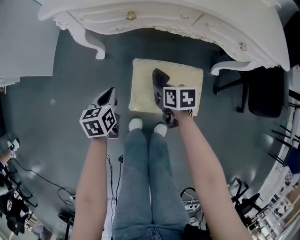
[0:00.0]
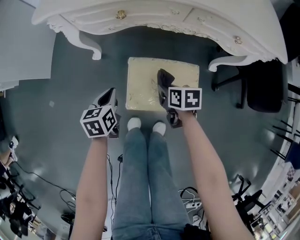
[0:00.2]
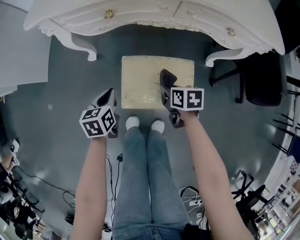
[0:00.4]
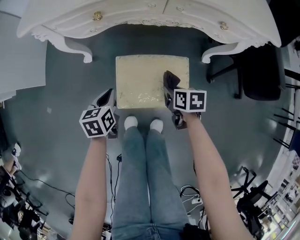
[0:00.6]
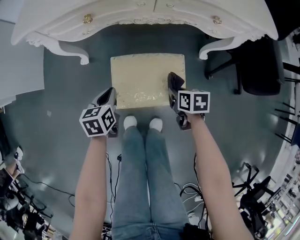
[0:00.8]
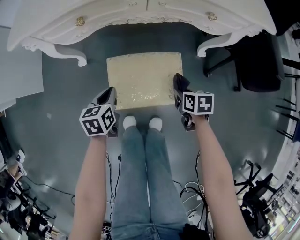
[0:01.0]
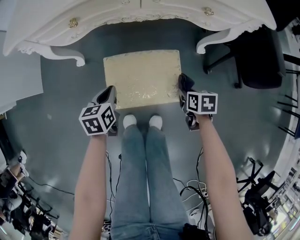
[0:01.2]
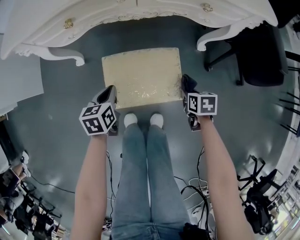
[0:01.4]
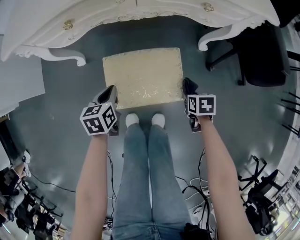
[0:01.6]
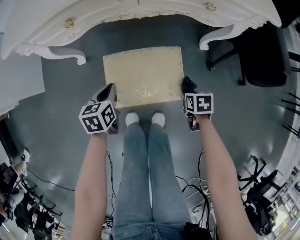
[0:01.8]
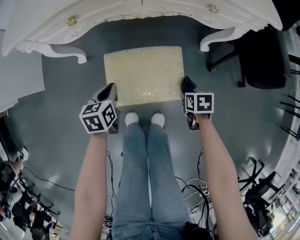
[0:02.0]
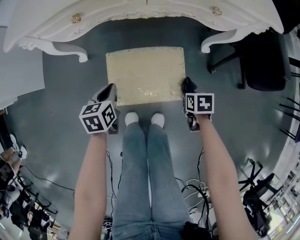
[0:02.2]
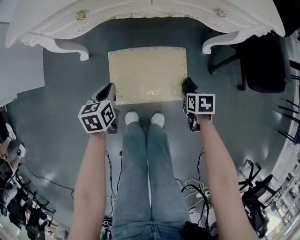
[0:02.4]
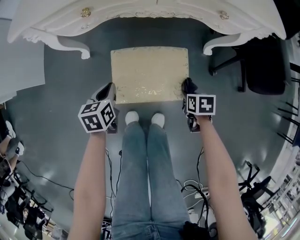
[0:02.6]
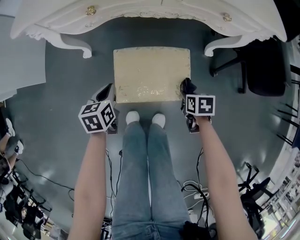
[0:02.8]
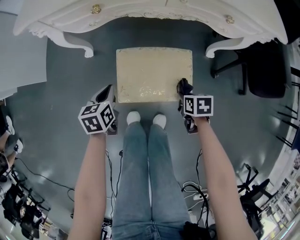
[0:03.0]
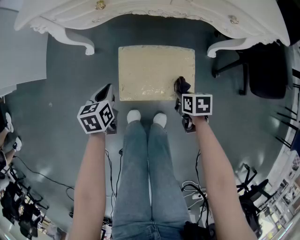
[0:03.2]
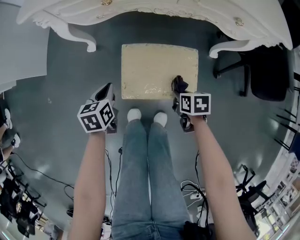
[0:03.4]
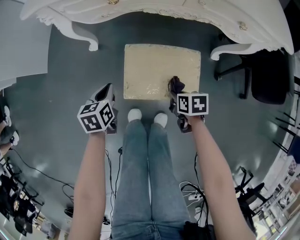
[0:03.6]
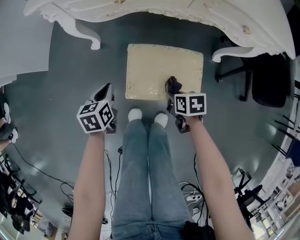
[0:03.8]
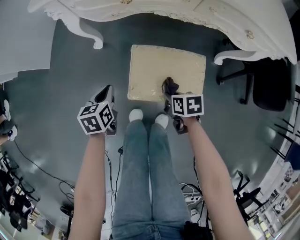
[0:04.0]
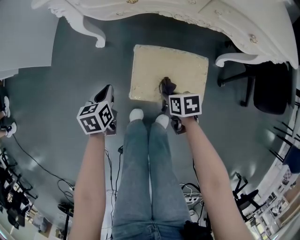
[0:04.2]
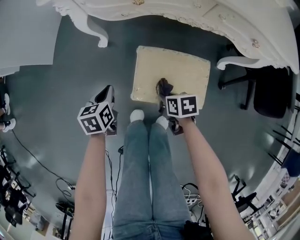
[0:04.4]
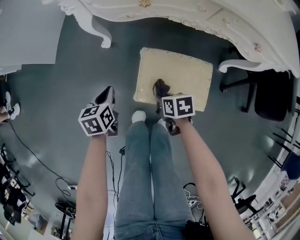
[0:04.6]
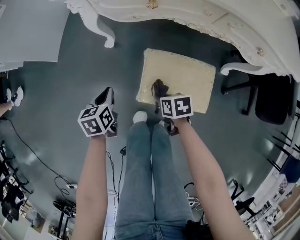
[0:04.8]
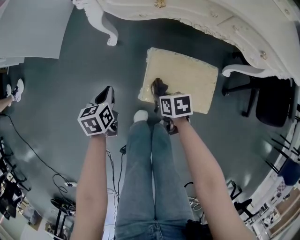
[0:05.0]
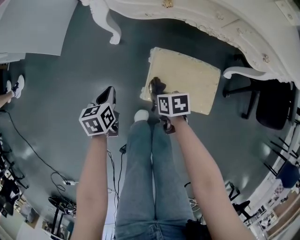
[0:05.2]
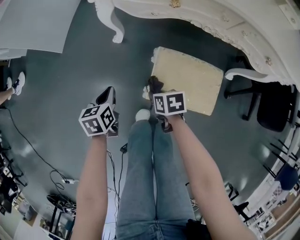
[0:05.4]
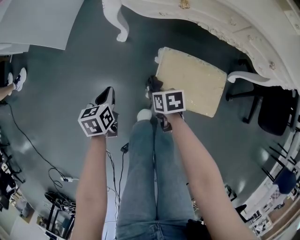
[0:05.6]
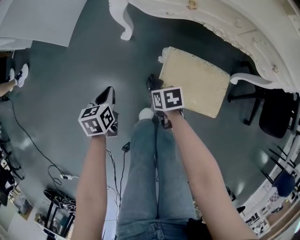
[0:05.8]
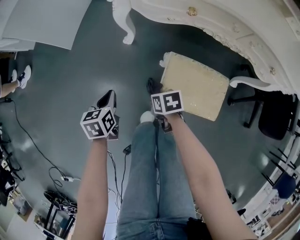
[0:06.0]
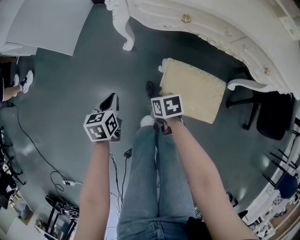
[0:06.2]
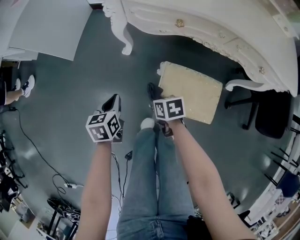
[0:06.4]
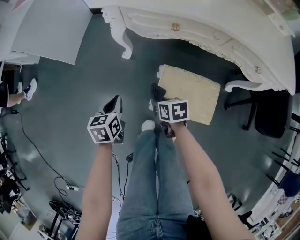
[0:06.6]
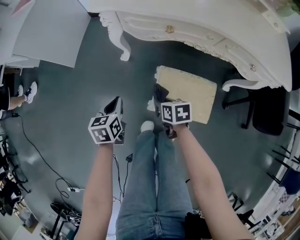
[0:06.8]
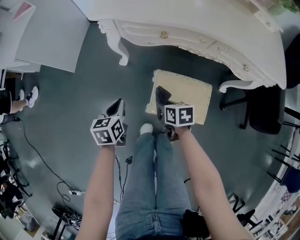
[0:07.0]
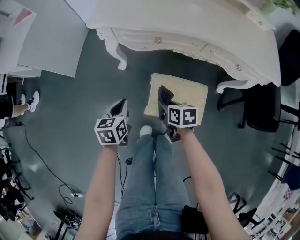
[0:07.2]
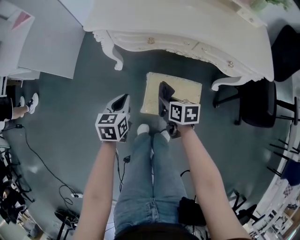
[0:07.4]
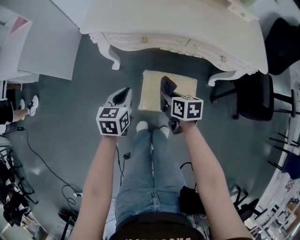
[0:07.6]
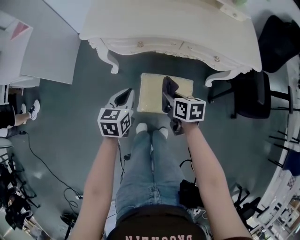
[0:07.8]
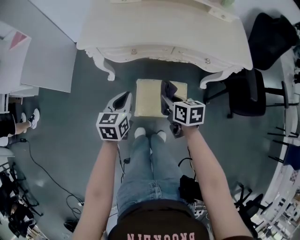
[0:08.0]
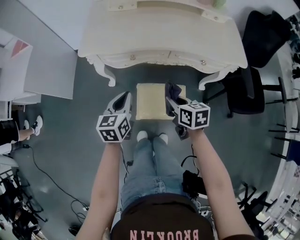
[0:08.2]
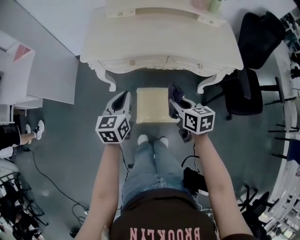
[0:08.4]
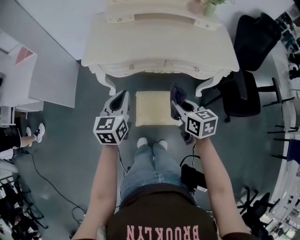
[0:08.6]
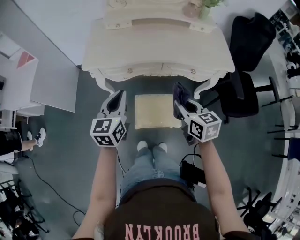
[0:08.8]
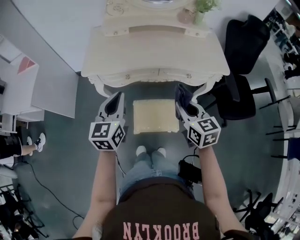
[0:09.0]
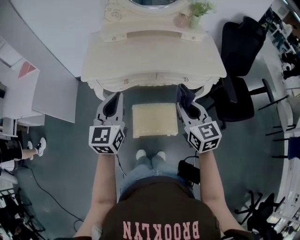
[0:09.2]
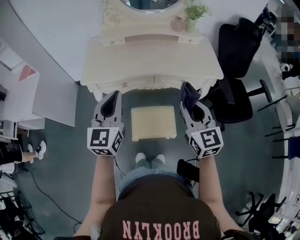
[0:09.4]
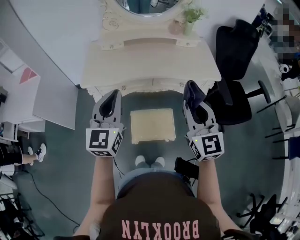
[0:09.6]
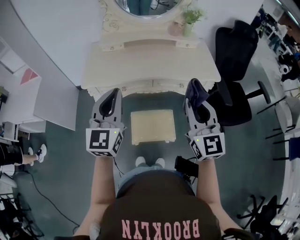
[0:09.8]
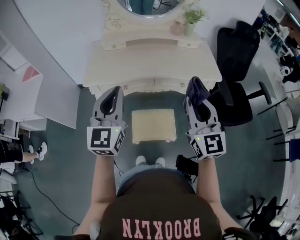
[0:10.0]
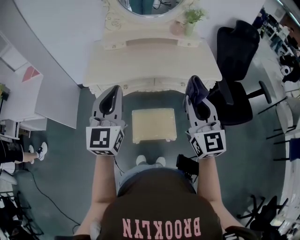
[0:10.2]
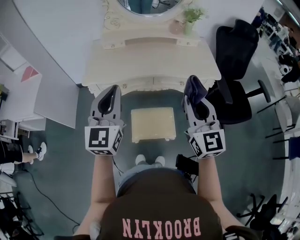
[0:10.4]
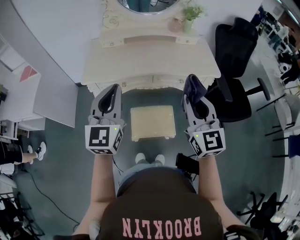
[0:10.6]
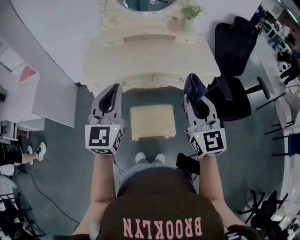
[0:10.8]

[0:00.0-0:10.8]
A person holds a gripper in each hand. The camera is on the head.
0:00.0 to 0:01.6: The left gripper is displaced to the right by about 15 cm. Meanwhile the right gripper travels to the right and backward by some 30 cm, and changes its angle by approximately 20 degrees.
0:01.6 to 0:03.0: The grippers both shift to the left by about 10 cm.
0:03.0 to 0:04.6: The left gripper goes roughly 10 cm to the left. Meanwhile the right gripper goes approximately 20 cm to the left and forward.
0:04.6 to 0:06.2: The right gripper travels to the left and forward by some 15 cm. The left gripper goes approximately 10 cm to the left.
0:06.2 to 0:07.8: Both grippers move upward, approximately 25 cm. The right gripper turns by roughly 30 degrees. The left gripper turns by some 30 degrees.
0:07.8 to 0:09.2: The two grippers go some 30 cm upward. The left gripper swivels approximately 30 degrees; the right gripper swivels about 40 degrees.
0:09.2 to 0:10.8: Both grippers travel together upward, some 10 cm. The right gripper swivels about 20 degrees.

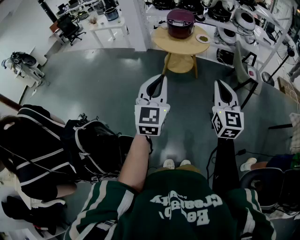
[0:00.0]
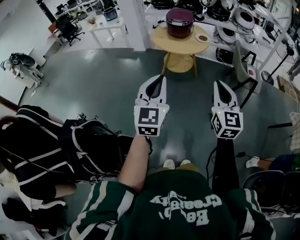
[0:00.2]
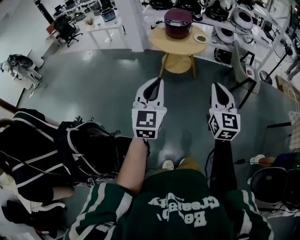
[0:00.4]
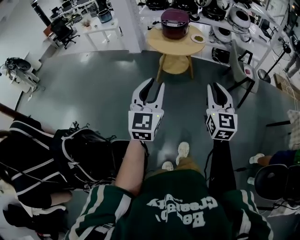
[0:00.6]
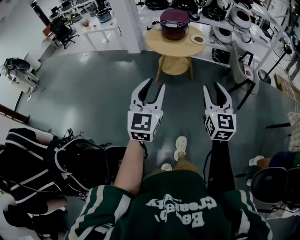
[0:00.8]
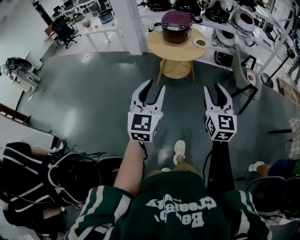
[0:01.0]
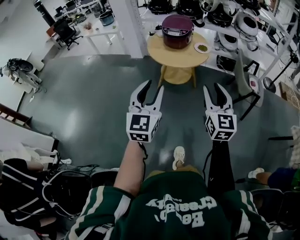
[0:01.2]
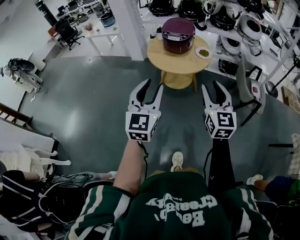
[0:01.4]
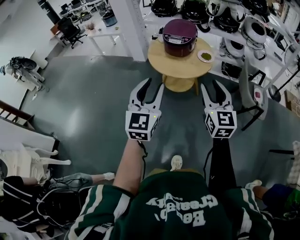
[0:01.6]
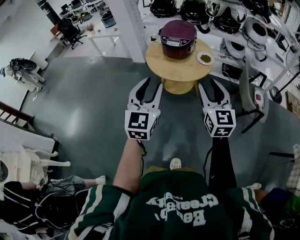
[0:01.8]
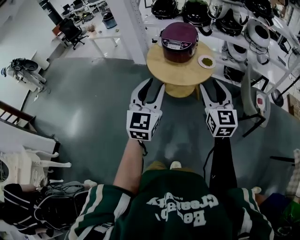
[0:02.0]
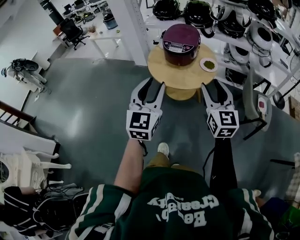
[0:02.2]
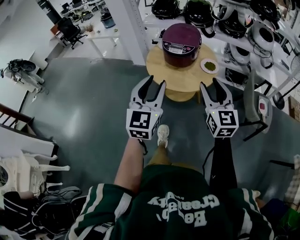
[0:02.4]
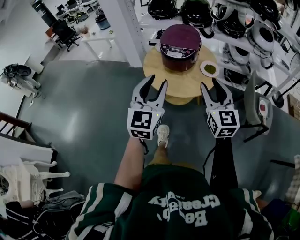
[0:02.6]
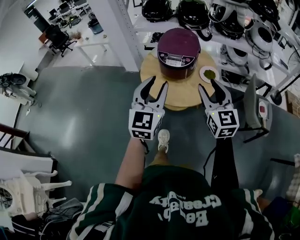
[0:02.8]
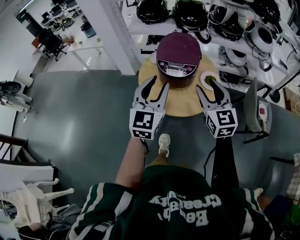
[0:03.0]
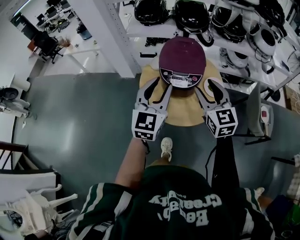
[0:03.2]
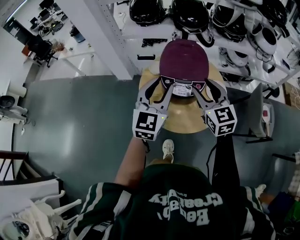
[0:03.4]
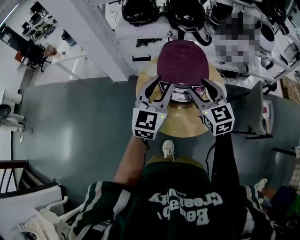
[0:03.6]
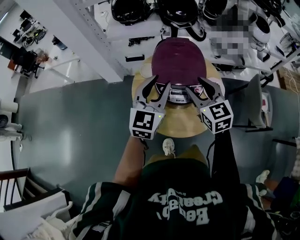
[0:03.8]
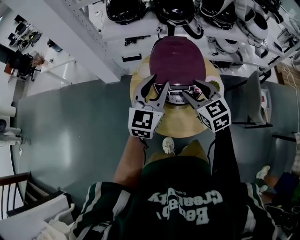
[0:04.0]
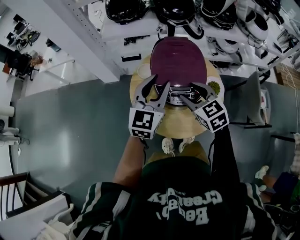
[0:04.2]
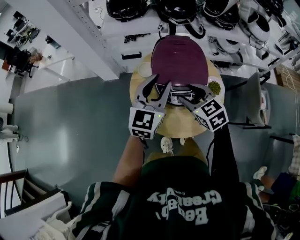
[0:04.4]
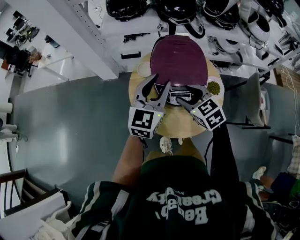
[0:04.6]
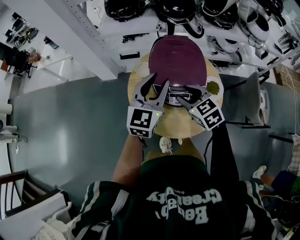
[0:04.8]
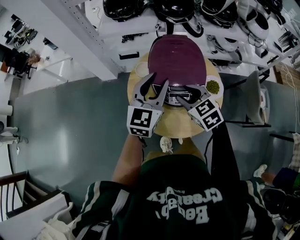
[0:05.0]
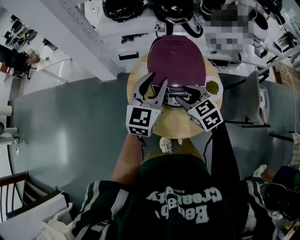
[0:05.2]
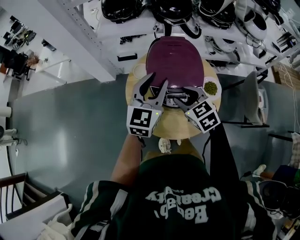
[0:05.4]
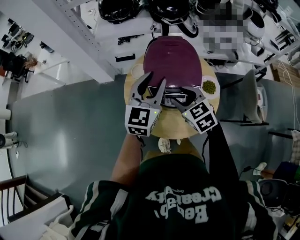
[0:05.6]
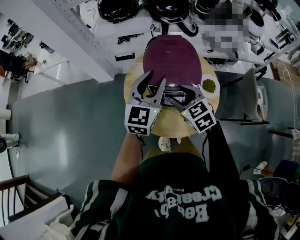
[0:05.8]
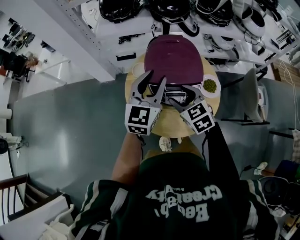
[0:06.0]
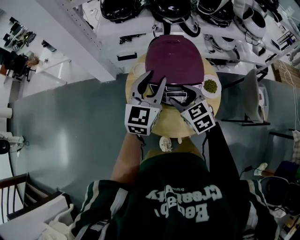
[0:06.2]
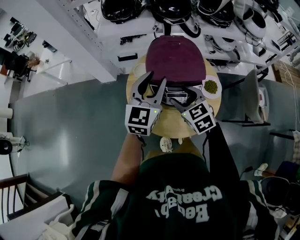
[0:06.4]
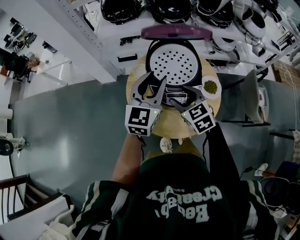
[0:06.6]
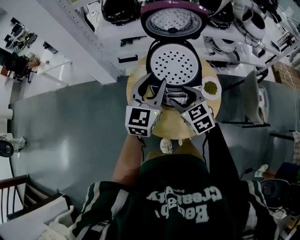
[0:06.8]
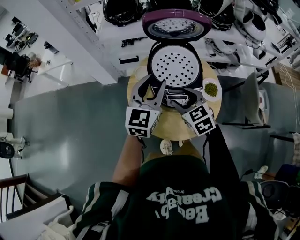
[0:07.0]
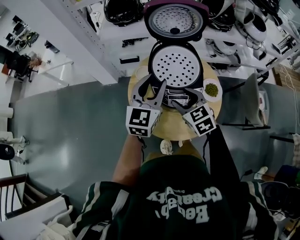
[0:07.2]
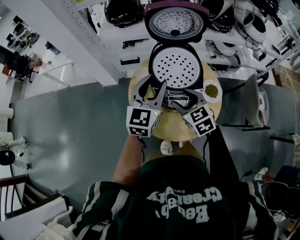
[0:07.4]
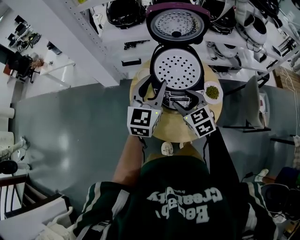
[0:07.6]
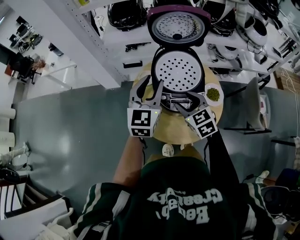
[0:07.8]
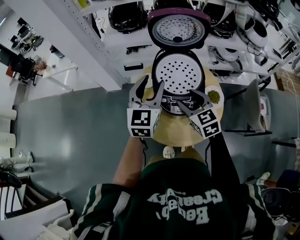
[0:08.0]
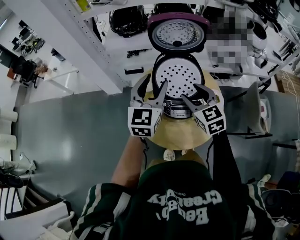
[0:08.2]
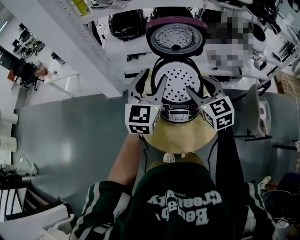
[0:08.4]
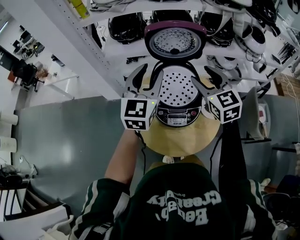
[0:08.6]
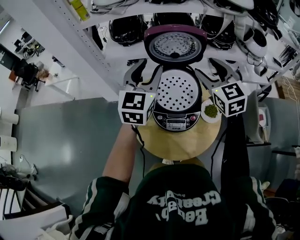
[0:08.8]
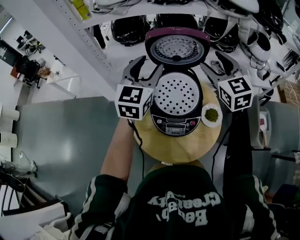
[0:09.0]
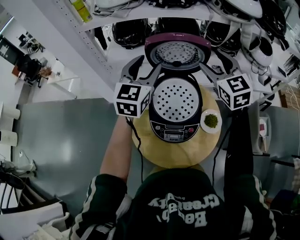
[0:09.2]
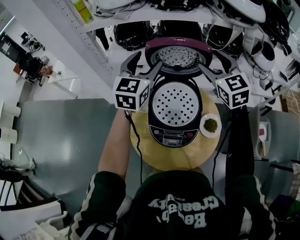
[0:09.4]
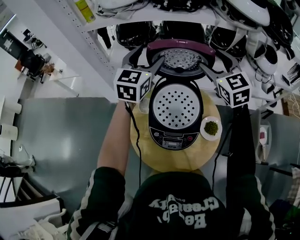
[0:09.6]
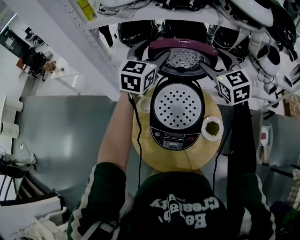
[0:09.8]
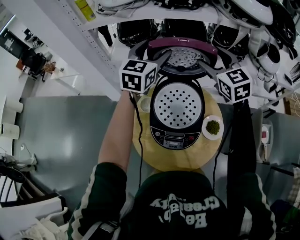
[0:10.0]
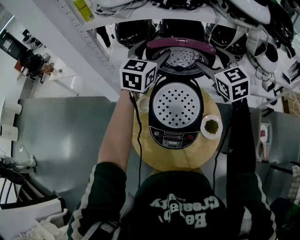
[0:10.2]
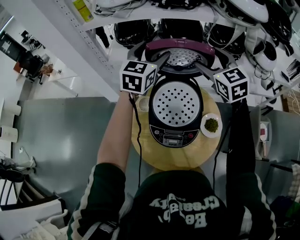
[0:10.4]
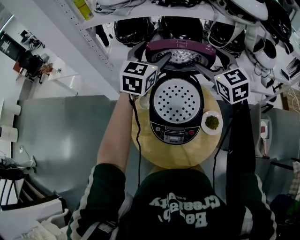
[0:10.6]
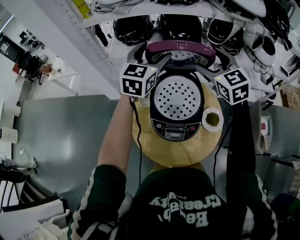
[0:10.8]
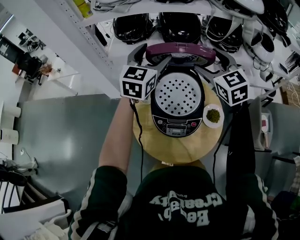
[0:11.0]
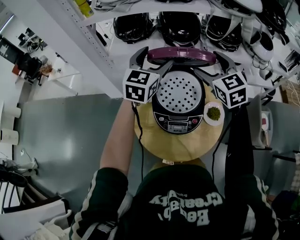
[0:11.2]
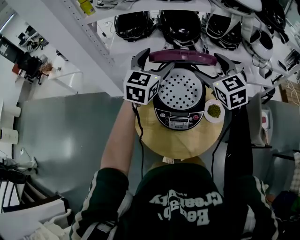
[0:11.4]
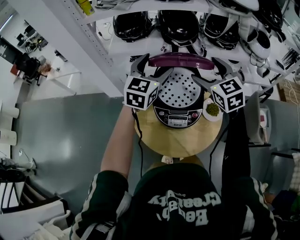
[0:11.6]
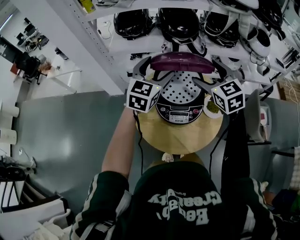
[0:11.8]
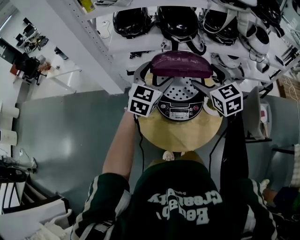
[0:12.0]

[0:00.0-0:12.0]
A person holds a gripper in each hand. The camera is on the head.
0:00.0 to 0:01.6: The two grippers go approximately 25 cm forward. The right gripper opens. Meanwhile the left gripper opens.
0:01.6 to 0:03.0: The grippers both shift forward by some 35 cm.
0:03.0 to 0:04.4: The left gripper heads forward, covering some 25 cm; the right gripper travels forward, downward and to the left by approximately 25 cm, and changes its angle by roughly 30 degrees.
0:04.4 to 0:07.6: The grippers stay close to where they were, moving slightly.
0:07.6 to 0:09.0: The right gripper moves upward, forward and to the right, some 30 cm, and swivels approximately 20 degrees. Meanwhile the left gripper travels forward and upward by some 15 cm.
0:09.0 to 0:10.4: Both grippers move forward, about 10 cm.
0:10.4 to 0:12.0: Both grippers travel together backward and downward, some 20 cm.

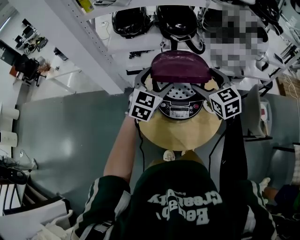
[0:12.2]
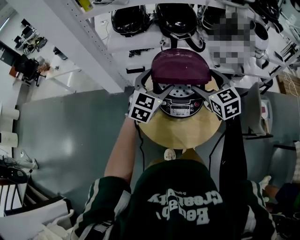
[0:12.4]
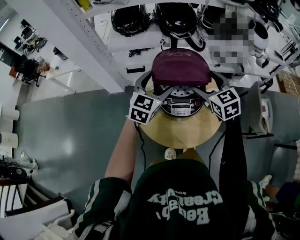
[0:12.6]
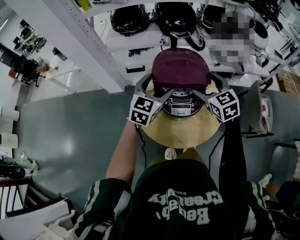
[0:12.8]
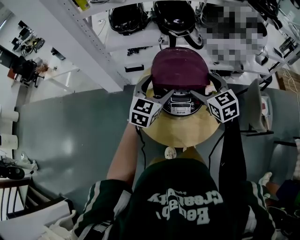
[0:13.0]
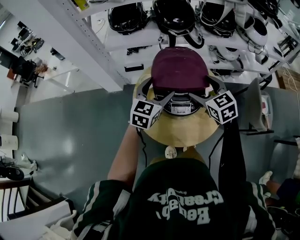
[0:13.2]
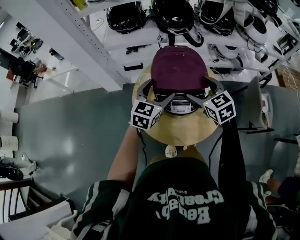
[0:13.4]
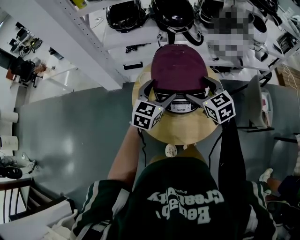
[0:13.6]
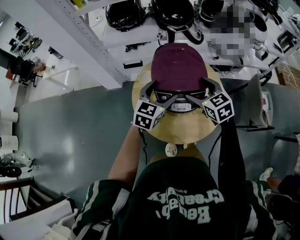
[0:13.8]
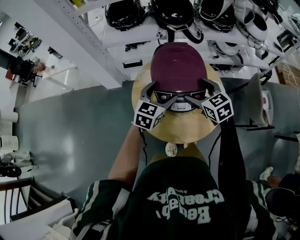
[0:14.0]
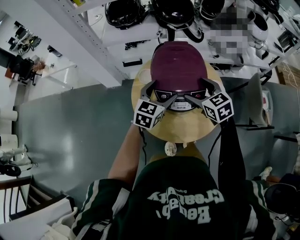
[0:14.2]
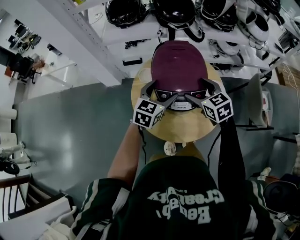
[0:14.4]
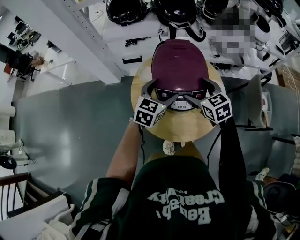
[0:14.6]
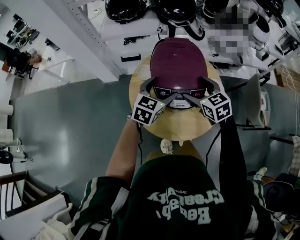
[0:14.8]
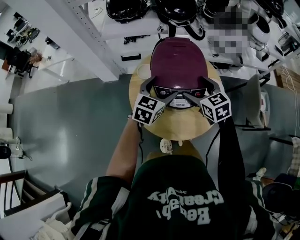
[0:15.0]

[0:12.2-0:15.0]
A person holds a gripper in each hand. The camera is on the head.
0:12.2 to 0:13.6: The two grippers go roughly 5 cm downward.
0:13.6 to 0:15.0: The grippers move only a little.
